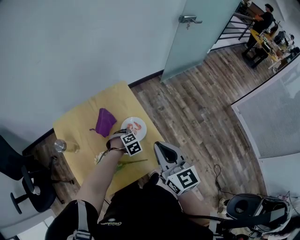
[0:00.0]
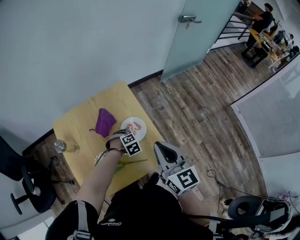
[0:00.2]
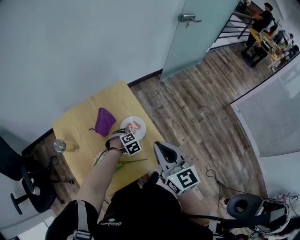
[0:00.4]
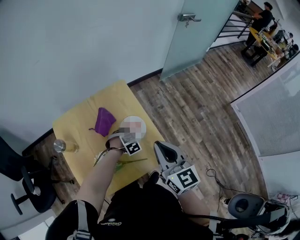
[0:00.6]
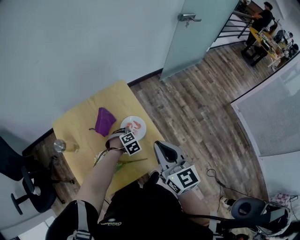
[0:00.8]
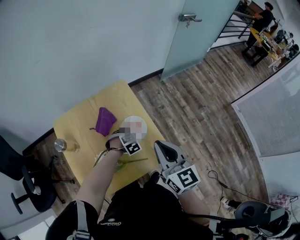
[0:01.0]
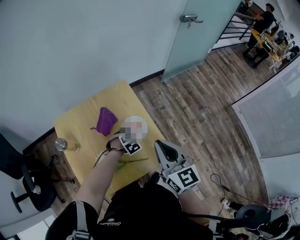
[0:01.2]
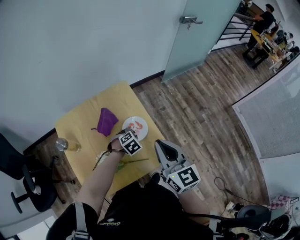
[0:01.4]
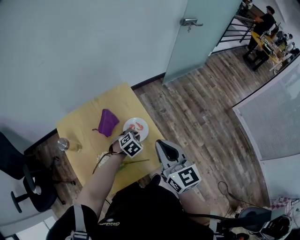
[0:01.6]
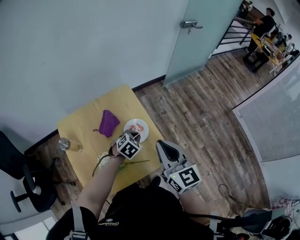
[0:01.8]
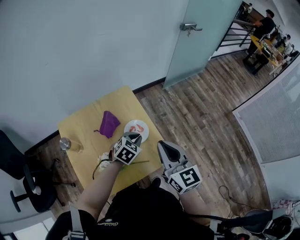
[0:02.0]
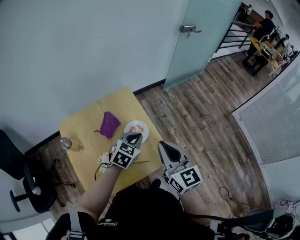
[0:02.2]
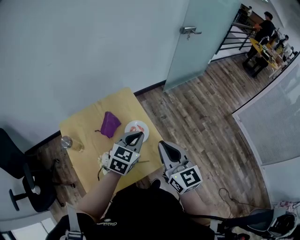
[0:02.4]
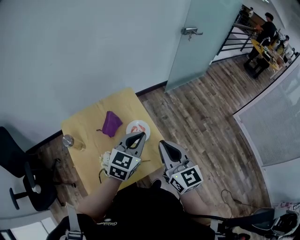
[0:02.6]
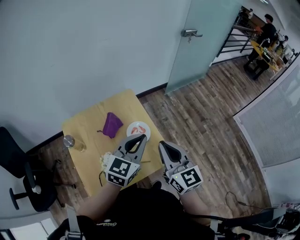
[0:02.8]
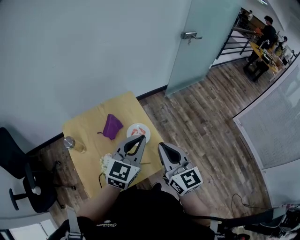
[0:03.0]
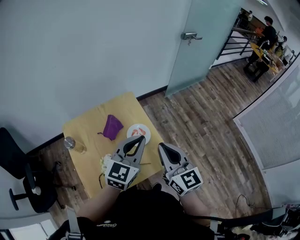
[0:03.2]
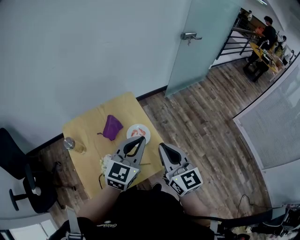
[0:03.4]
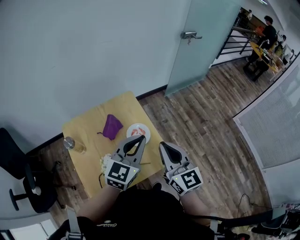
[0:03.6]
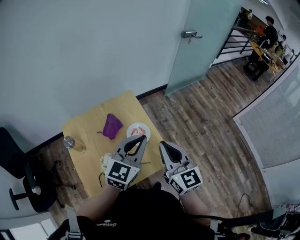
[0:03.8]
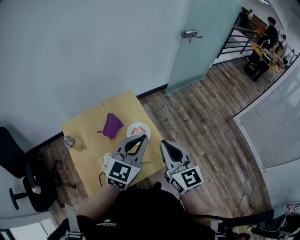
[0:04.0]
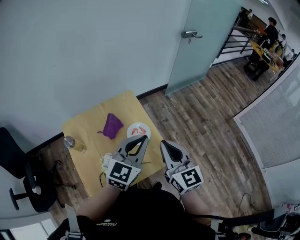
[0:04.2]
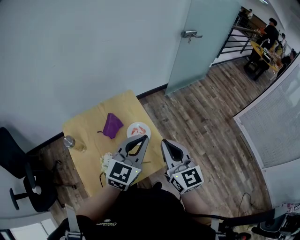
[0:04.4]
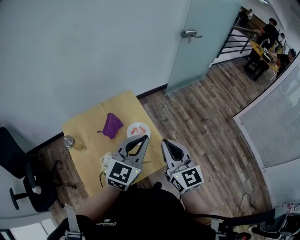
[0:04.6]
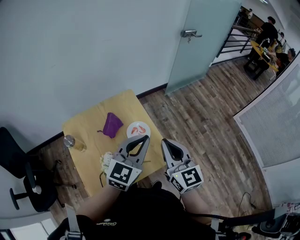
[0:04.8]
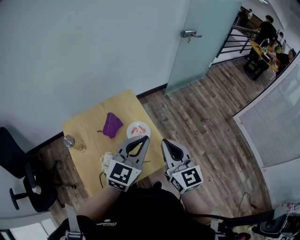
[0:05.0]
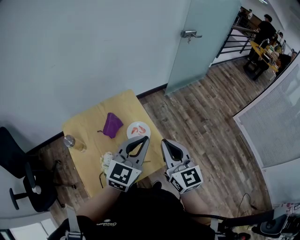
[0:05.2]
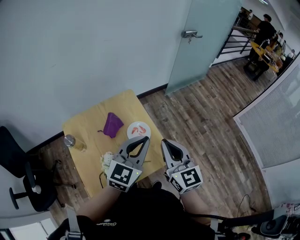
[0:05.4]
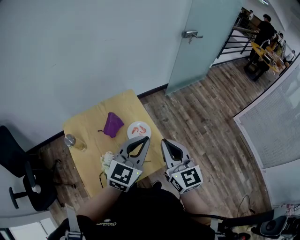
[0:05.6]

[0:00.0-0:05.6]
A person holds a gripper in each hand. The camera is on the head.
0:00.0 to 0:01.4: The grippers make only small movements.
0:01.4 to 0:02.8: The left gripper heads upward, covering some 30 cm, and tips its fingers upward by roughly 50 degrees.
0:02.8 to 0:04.2: There are only small adjustments of the grippers.
0:04.2 to 0:05.6: Both grippers stay put.

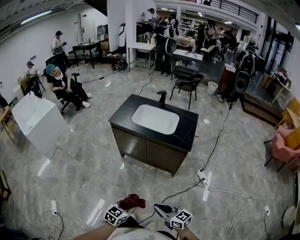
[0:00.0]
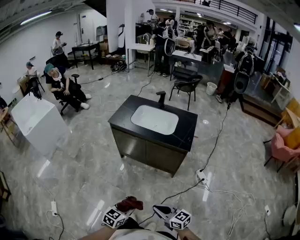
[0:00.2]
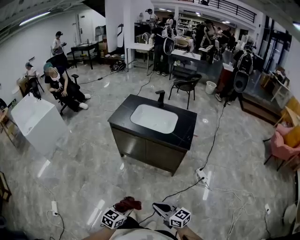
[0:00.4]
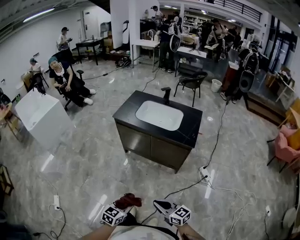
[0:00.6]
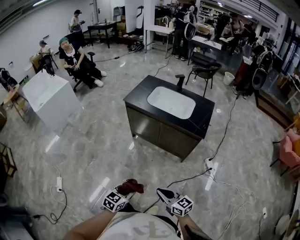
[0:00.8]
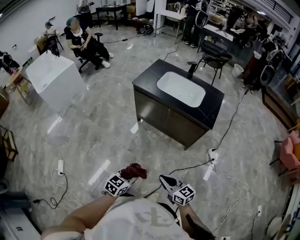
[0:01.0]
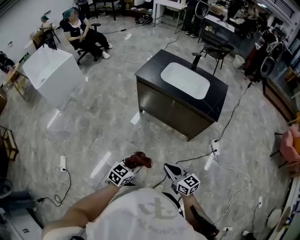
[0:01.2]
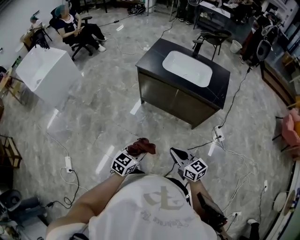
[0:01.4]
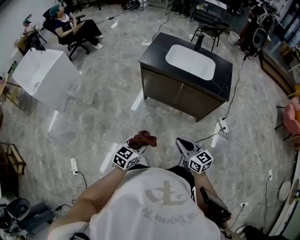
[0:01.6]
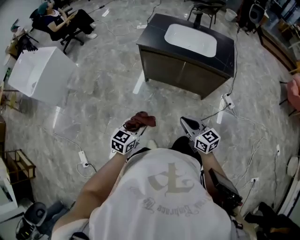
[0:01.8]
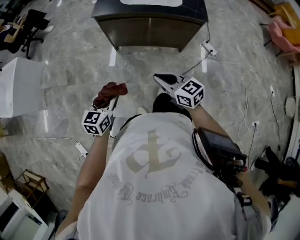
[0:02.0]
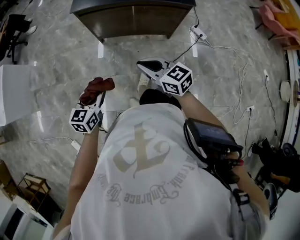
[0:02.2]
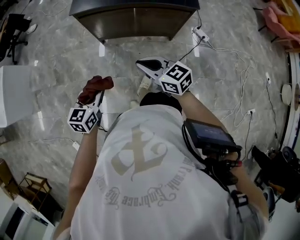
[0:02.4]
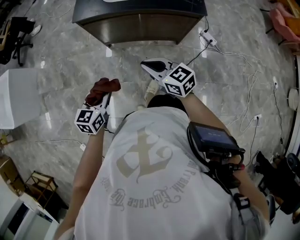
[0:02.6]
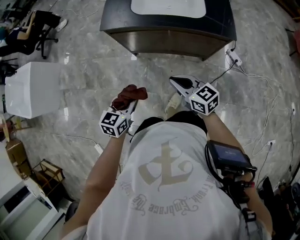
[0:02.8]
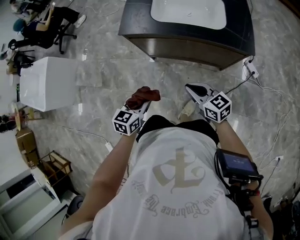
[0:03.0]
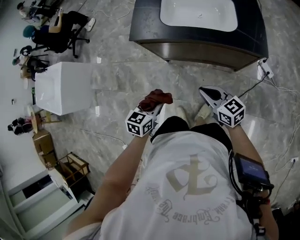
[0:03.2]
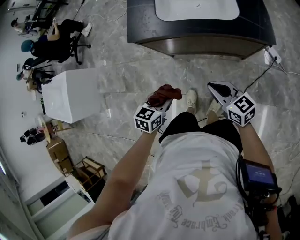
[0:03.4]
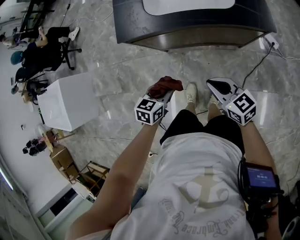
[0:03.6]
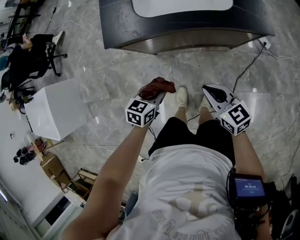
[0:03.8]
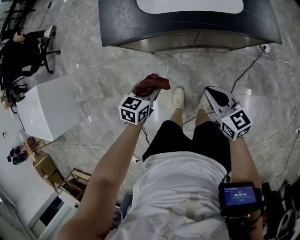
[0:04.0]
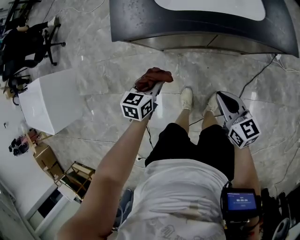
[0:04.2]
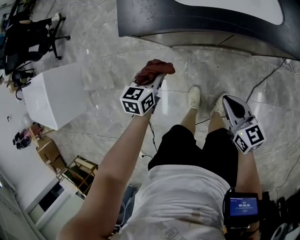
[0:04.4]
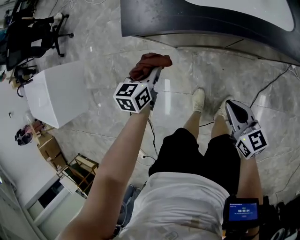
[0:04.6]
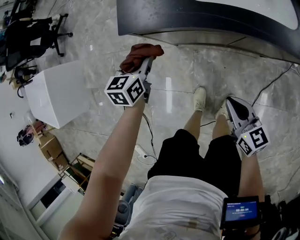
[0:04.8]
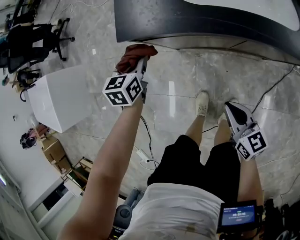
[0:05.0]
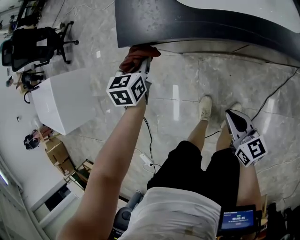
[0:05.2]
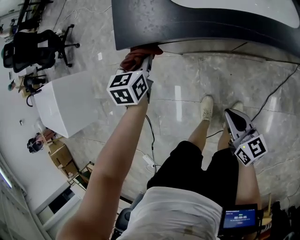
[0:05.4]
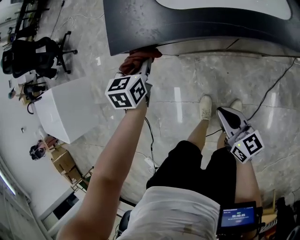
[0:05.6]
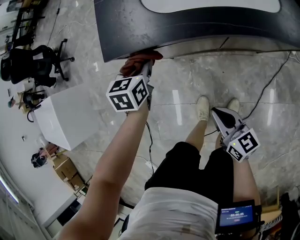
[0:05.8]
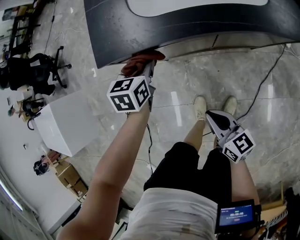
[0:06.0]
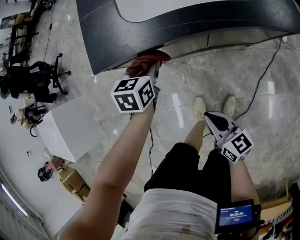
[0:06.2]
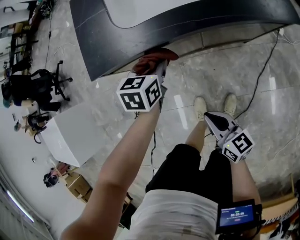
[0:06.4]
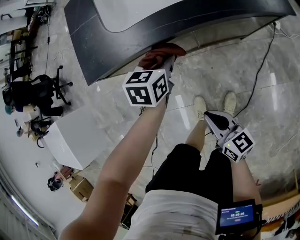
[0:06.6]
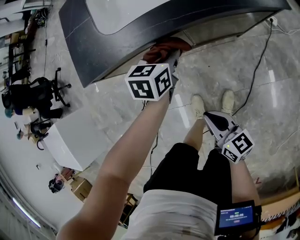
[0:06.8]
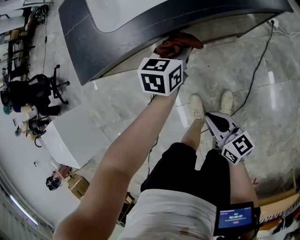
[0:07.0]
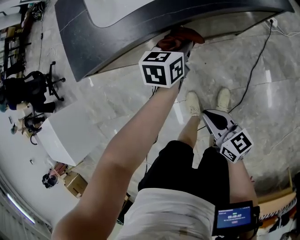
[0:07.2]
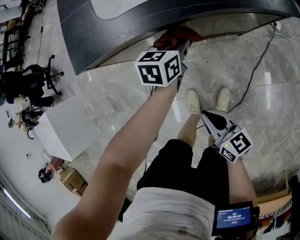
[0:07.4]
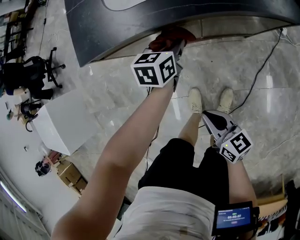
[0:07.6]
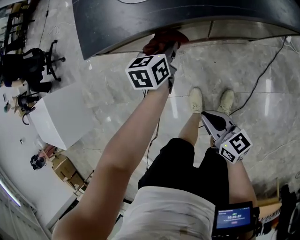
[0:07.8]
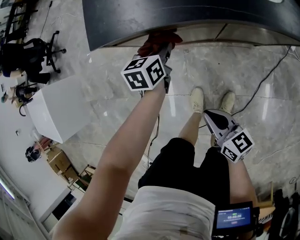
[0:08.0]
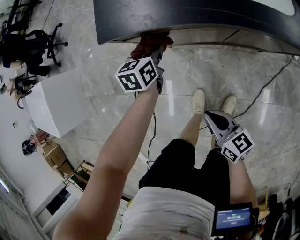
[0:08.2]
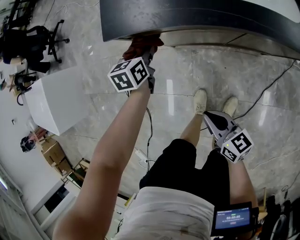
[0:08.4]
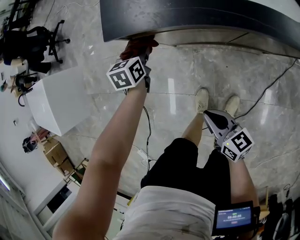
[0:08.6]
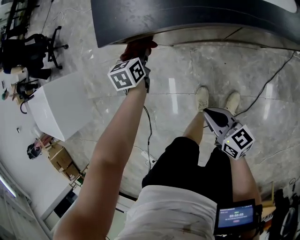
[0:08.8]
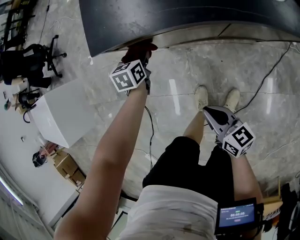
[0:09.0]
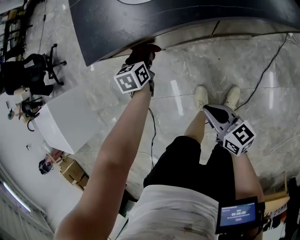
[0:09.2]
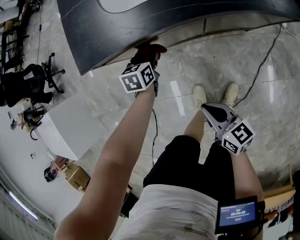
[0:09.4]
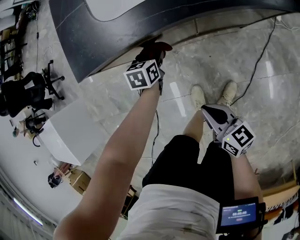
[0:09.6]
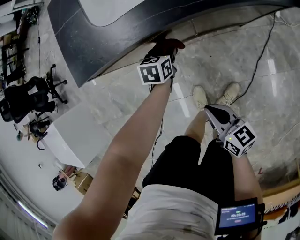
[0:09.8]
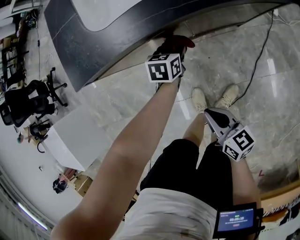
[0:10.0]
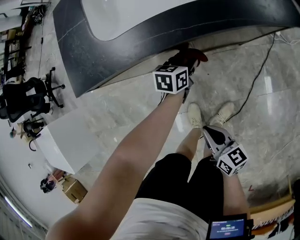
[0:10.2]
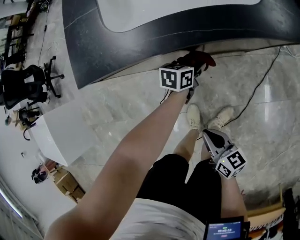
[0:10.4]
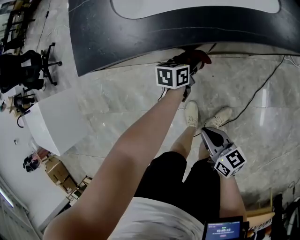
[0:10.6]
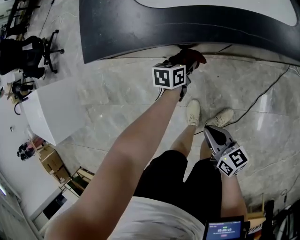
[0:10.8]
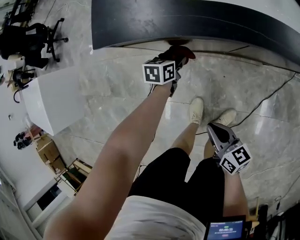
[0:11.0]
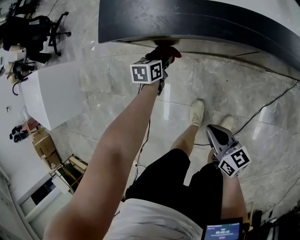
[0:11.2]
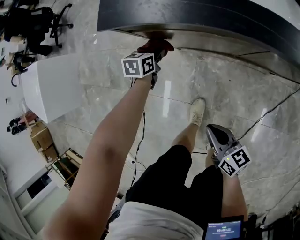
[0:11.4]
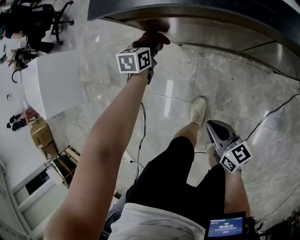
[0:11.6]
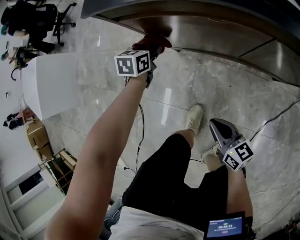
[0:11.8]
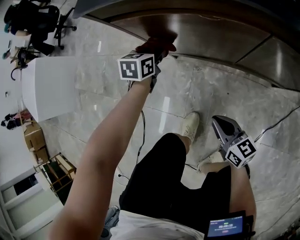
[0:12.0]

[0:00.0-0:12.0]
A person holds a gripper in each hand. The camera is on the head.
0:00.0 to 0:01.6: Both grippers travel together to the left and forward, about 25 cm.
0:01.6 to 0:03.0: Both grippers move forward, some 25 cm.
0:03.0 to 0:04.4: The right gripper travels downward, forward and to the left by roughly 15 cm, and swivels approximately 20 degrees, while the left gripper shifts some 30 cm forward, downward and to the left.
0:04.4 to 0:06.0: The right gripper goes approximately 10 cm downward and to the left. Meanwhile the left gripper goes roughly 10 cm forward and to the right.
0:06.0 to 0:07.6: The left gripper is displaced to the right and downward by approximately 15 cm.
0:07.6 to 0:09.0: The left gripper goes some 20 cm to the left, and swivels about 20 degrees.
0:09.0 to 0:10.4: The right gripper moves roughly 5 cm. Meanwhile the left gripper ends up some 30 cm from where it was, and swivels about 40 degrees.
0:10.4 to 0:12.0: The left gripper moves about 30 cm, and changes its angle by roughly 40 degrees, while the right gripper travels downward by some 15 cm, and changes its angle by some 30 degrees.

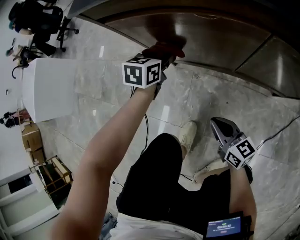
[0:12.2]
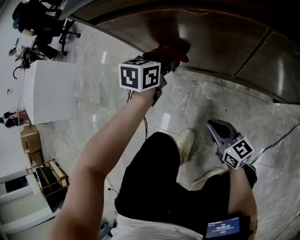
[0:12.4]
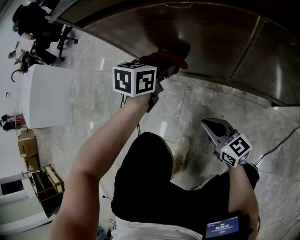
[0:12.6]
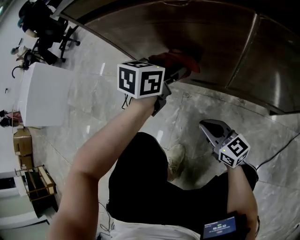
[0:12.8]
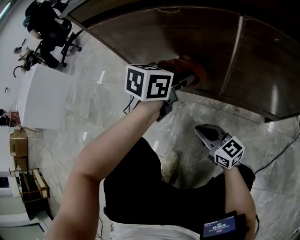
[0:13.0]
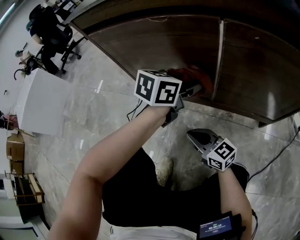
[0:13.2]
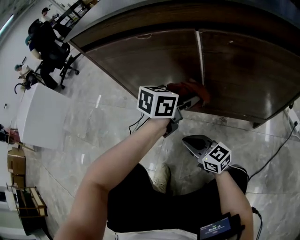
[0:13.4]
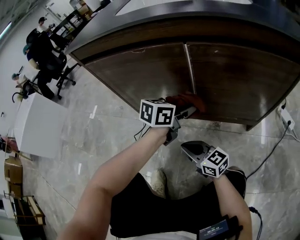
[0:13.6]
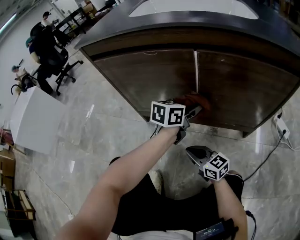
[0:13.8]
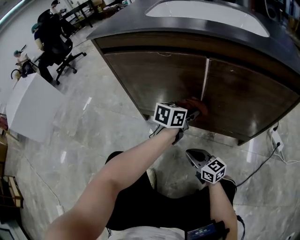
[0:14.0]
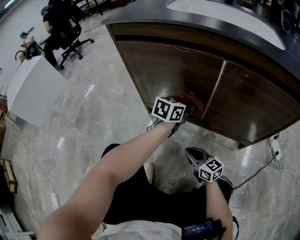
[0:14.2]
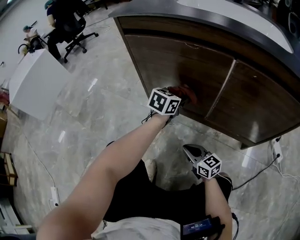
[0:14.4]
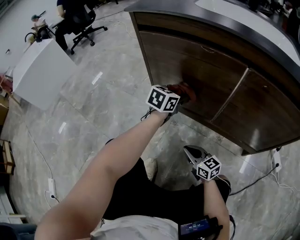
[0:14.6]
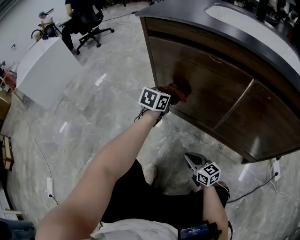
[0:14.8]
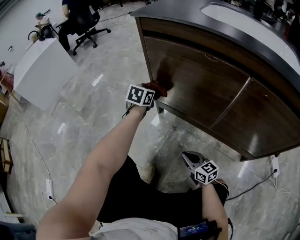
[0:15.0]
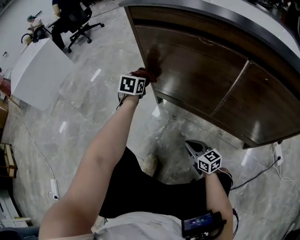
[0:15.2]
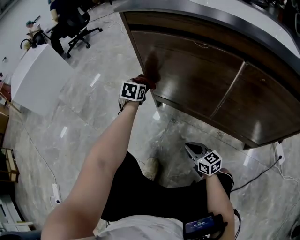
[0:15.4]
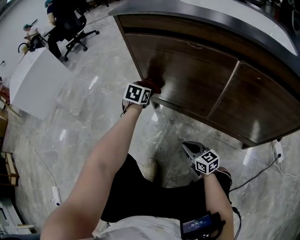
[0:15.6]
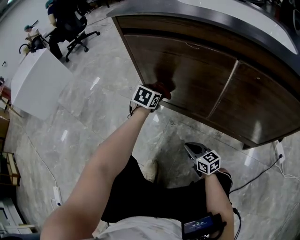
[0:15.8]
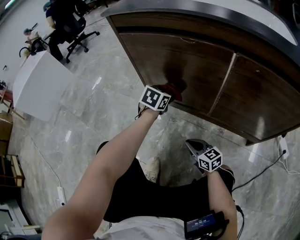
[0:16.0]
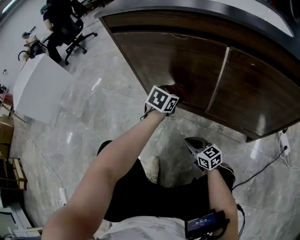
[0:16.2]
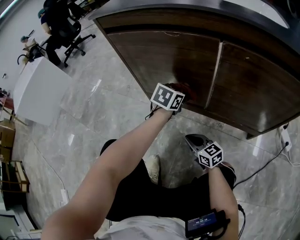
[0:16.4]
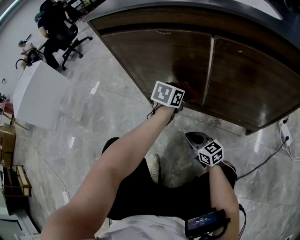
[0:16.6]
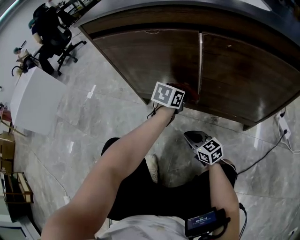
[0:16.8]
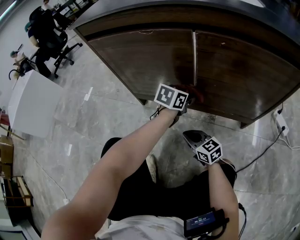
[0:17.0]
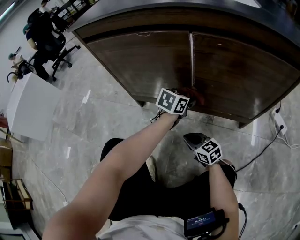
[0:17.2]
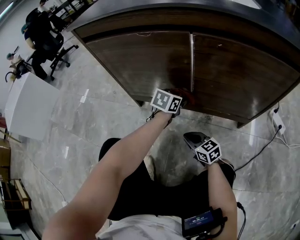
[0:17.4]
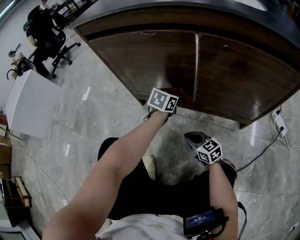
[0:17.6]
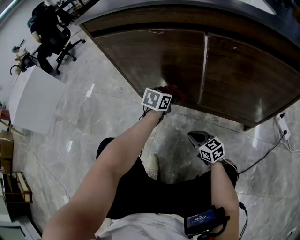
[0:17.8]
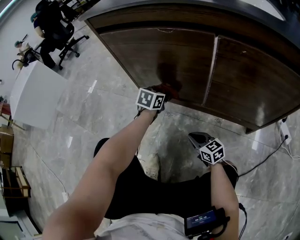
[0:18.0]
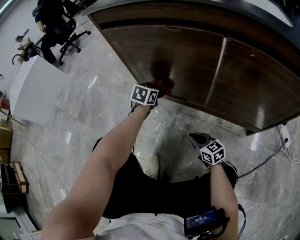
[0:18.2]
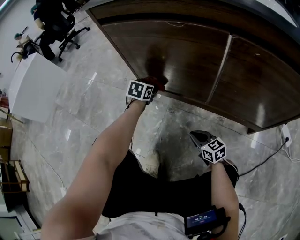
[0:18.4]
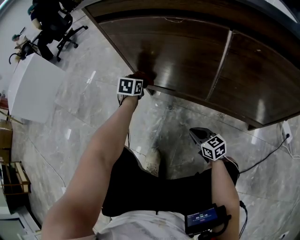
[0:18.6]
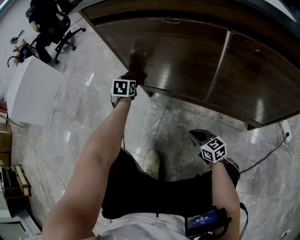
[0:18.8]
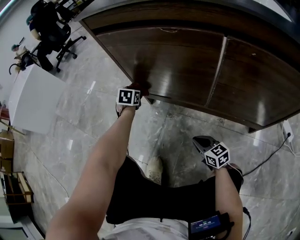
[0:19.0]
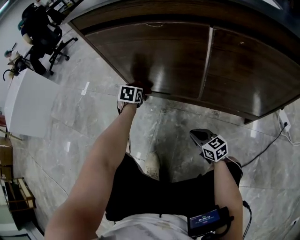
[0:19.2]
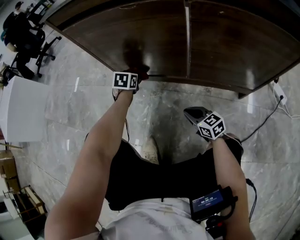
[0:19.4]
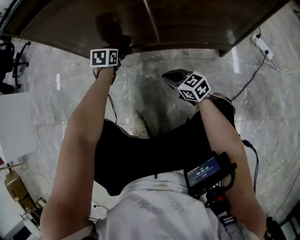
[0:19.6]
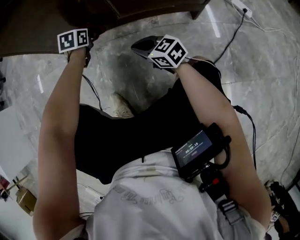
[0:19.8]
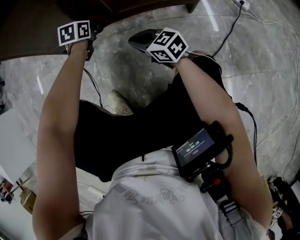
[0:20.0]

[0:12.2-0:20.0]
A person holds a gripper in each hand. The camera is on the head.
0:12.2 to 0:13.8: The left gripper heads to the right, covering some 25 cm, and rotates approximately 30 degrees. Meanwhile the right gripper heads downward and to the right, covering roughly 10 cm.
0:13.8 to 0:15.4: The right gripper goes roughly 5 cm downward; the left gripper ends up about 40 cm from where it was, and turns by approximately 50 degrees.
0:15.4 to 0:16.8: The right gripper goes roughly 5 cm to the right, while the left gripper is displaced to the right and backward by roughly 30 cm, and changes its angle by about 30 degrees.
0:16.8 to 0:18.4: The left gripper heads to the left, covering approximately 20 cm.
0:18.4 to 0:20.0: The left gripper changes place by approximately 20 cm, and swivels some 20 degrees. Meanwhile the right gripper changes place by about 10 cm.
